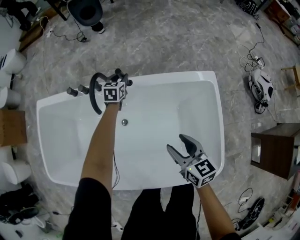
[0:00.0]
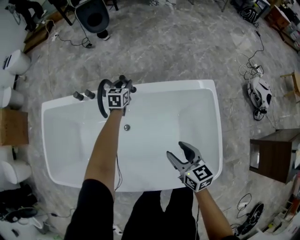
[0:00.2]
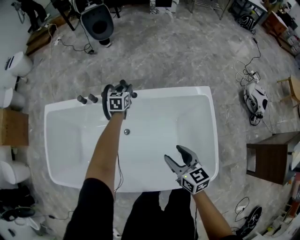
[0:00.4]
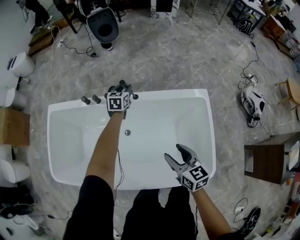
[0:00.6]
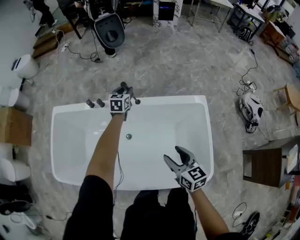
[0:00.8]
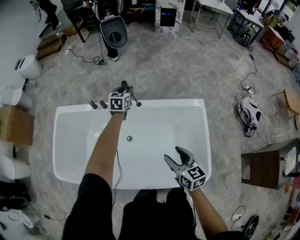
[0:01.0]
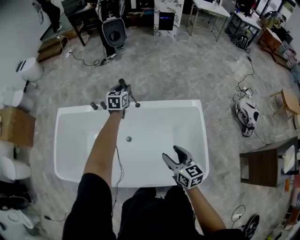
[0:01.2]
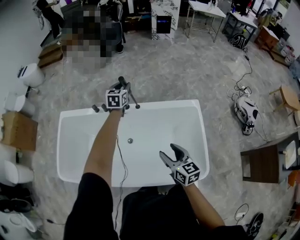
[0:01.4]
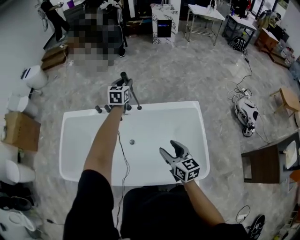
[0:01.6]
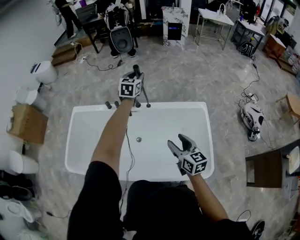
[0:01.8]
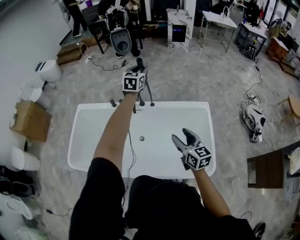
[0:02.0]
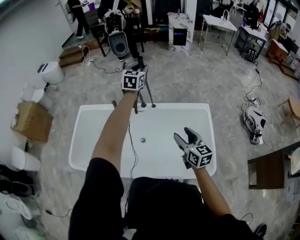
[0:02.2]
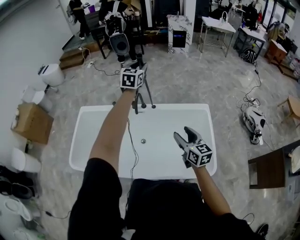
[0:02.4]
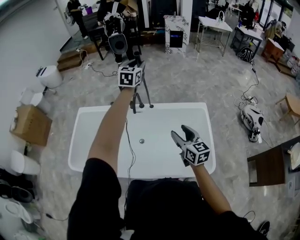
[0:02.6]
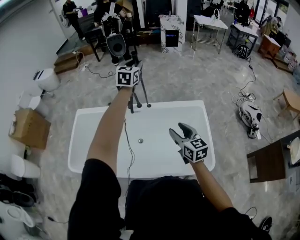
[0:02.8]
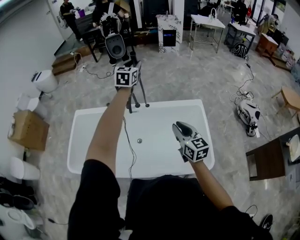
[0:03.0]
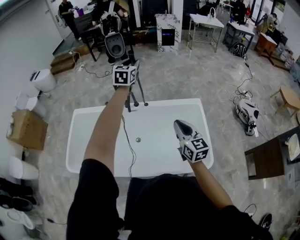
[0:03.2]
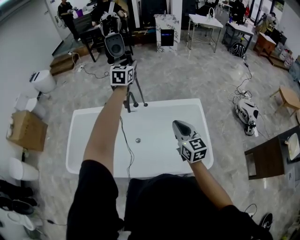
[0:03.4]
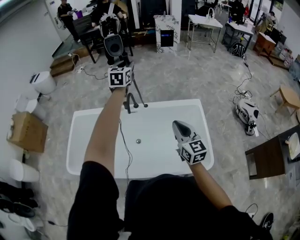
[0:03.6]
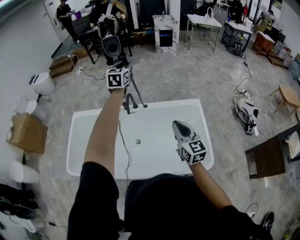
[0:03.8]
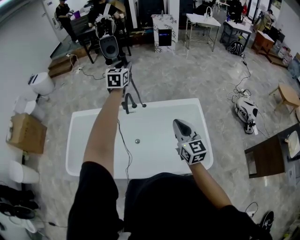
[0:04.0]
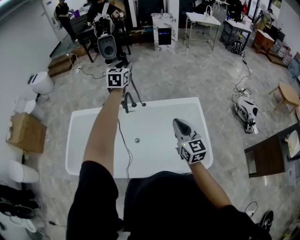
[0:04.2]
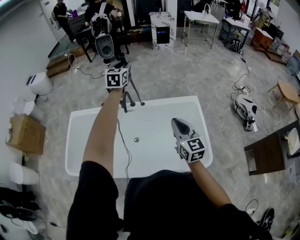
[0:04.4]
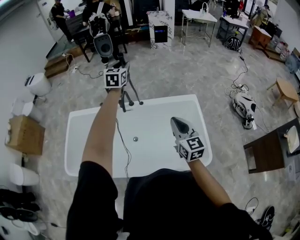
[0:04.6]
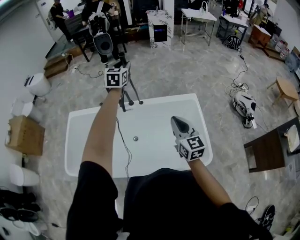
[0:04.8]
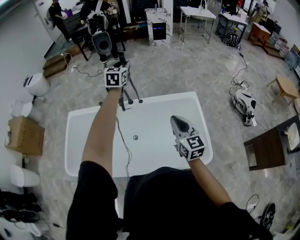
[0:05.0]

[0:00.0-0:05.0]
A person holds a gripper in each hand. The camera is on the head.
0:00.0 to 0:01.6: The right gripper travels upward and backward by approximately 20 cm; the left gripper goes about 40 cm upward.
0:01.6 to 0:03.4: The right gripper is displaced upward by roughly 10 cm, and closes. The left gripper moves upward and backward, about 20 cm.
0:03.4 to 0:05.0: The grippers stay close to where they were, moving slightly.

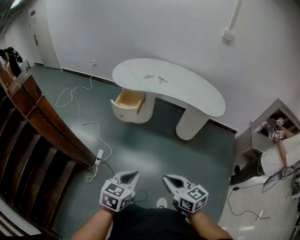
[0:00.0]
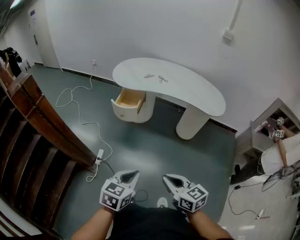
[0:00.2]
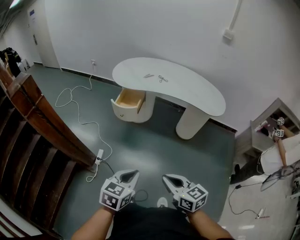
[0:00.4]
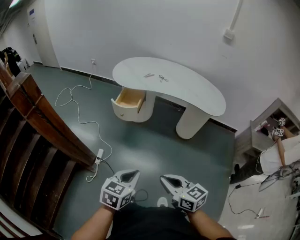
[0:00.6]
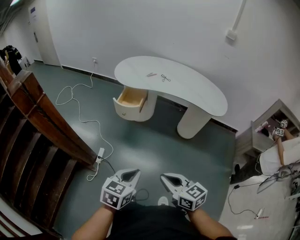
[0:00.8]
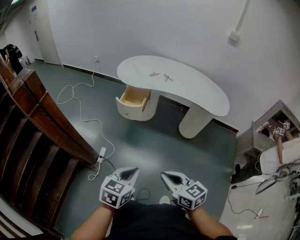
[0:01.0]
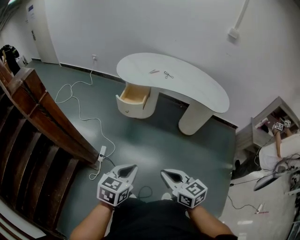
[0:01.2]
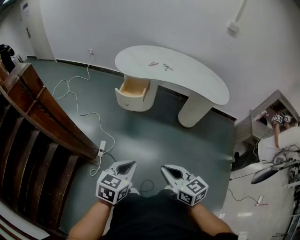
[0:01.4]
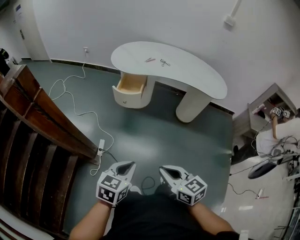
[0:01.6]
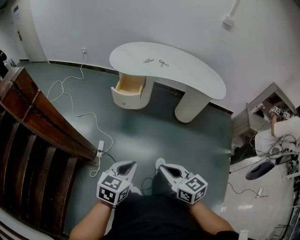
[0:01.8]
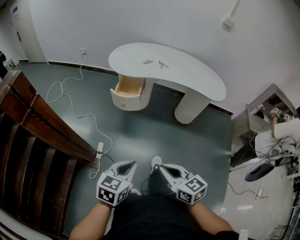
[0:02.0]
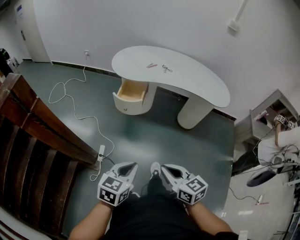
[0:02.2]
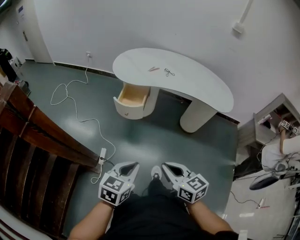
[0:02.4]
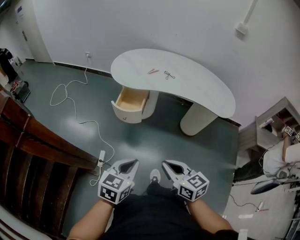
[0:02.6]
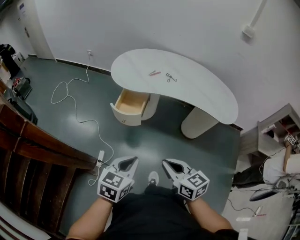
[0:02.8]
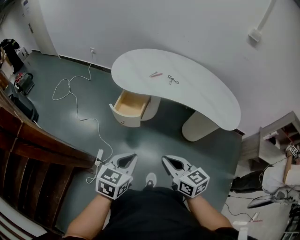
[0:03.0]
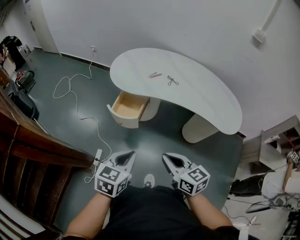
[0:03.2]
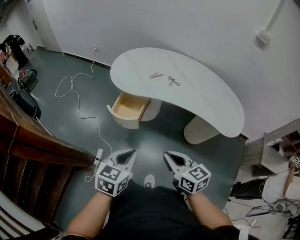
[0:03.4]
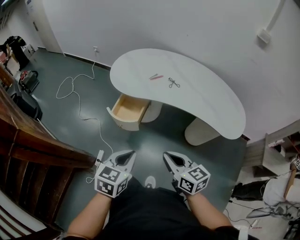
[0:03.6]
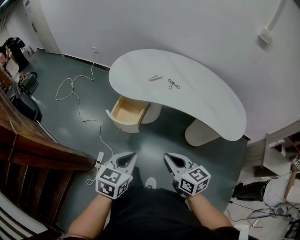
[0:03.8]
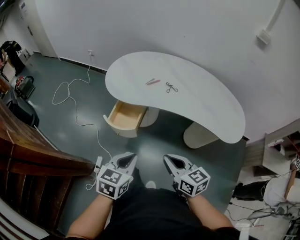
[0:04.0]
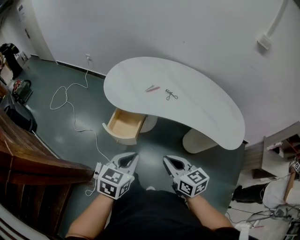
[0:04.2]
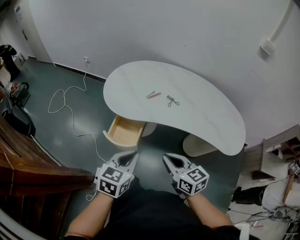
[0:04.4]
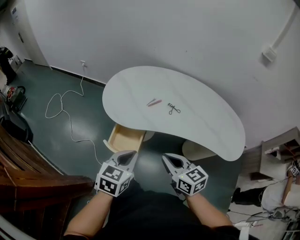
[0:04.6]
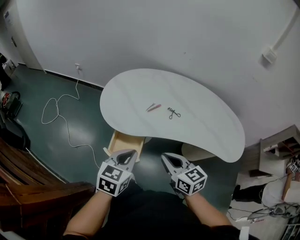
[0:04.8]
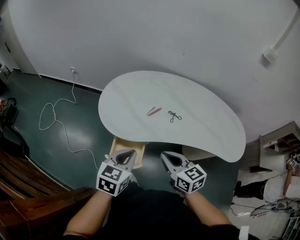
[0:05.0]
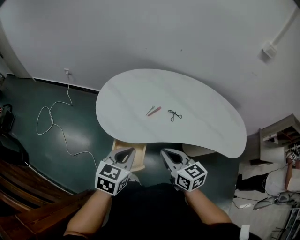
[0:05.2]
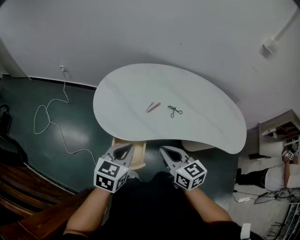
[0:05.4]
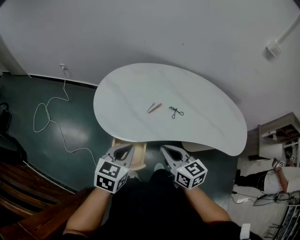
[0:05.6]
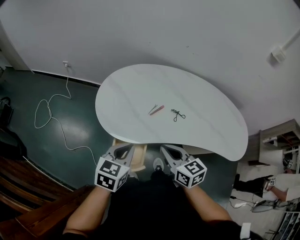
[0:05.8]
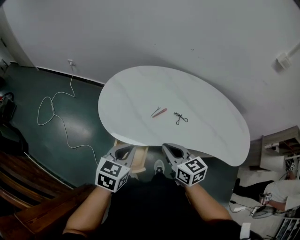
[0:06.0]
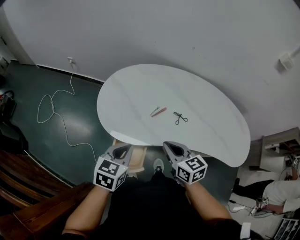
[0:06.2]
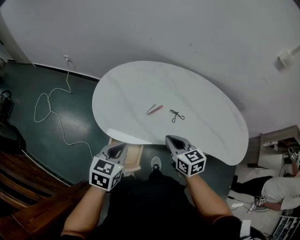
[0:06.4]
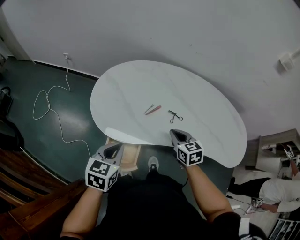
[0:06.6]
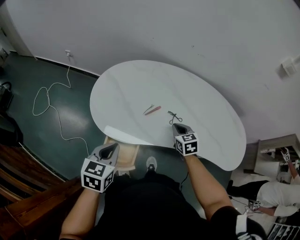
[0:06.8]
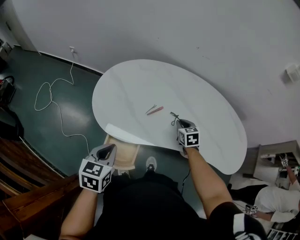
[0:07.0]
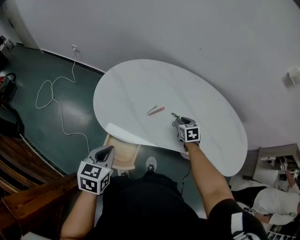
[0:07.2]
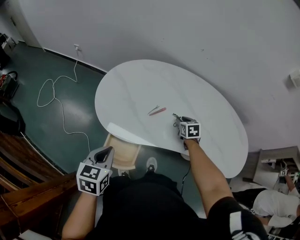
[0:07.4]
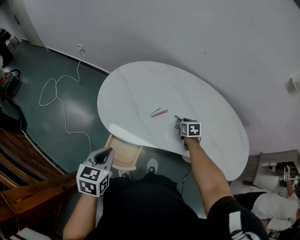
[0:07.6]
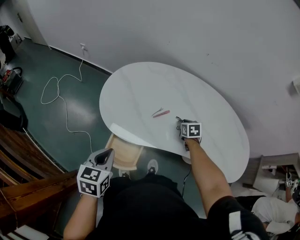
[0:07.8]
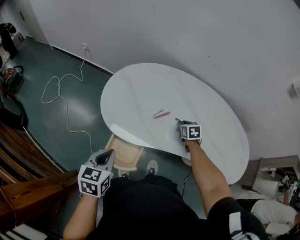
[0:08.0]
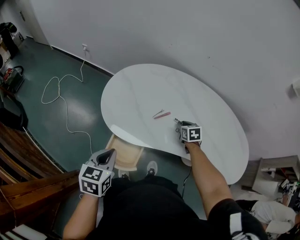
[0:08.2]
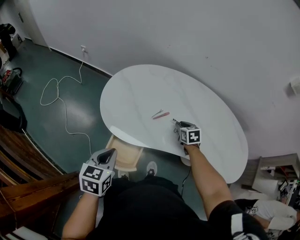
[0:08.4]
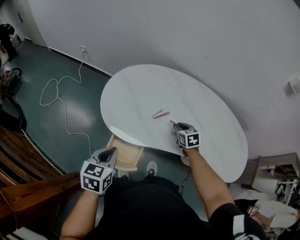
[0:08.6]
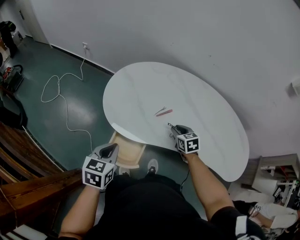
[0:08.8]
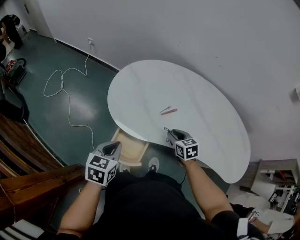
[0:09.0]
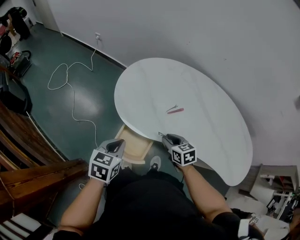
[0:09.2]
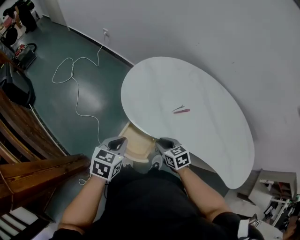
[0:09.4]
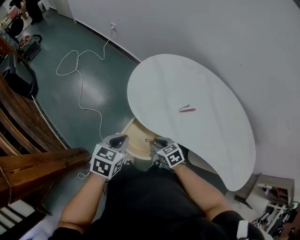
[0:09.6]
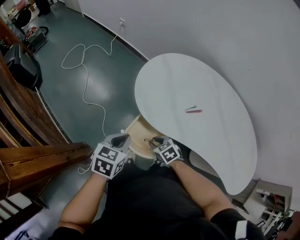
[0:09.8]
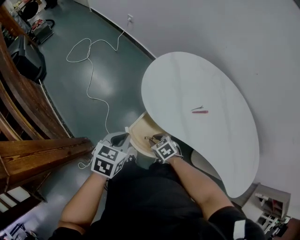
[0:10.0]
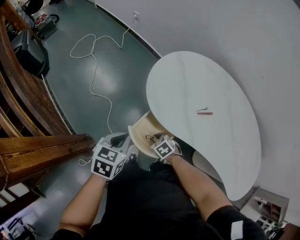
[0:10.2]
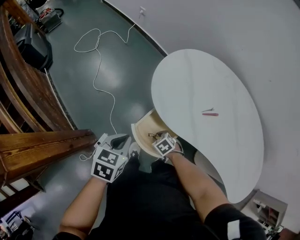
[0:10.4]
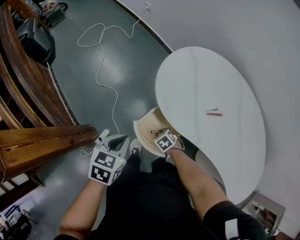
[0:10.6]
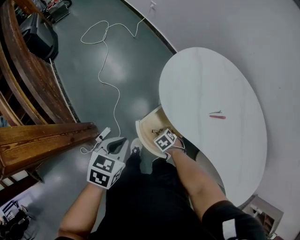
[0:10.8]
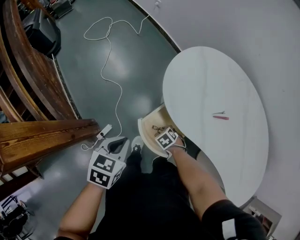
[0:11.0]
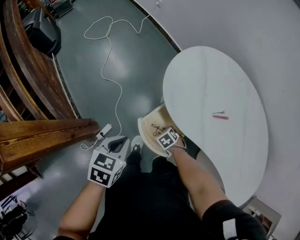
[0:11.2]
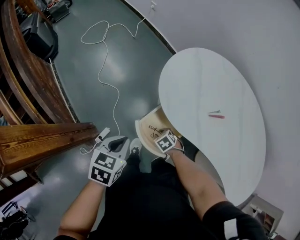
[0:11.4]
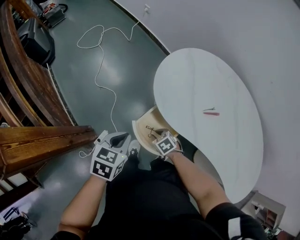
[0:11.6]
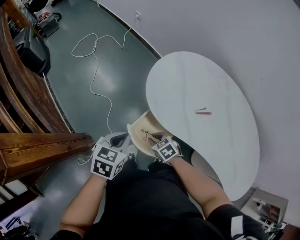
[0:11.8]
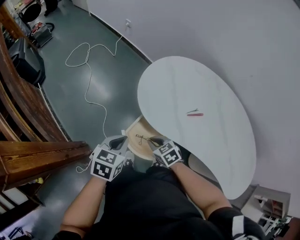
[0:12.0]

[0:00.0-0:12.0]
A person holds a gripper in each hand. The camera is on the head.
0:00.0 to 0:01.6: Both grippers move to the left, roughly 10 cm.
0:01.6 to 0:03.0: The two grippers go roughly 25 cm forward.
0:03.0 to 0:04.4: Both grippers move forward, about 20 cm.
0:04.4 to 0:06.0: The right gripper shifts roughly 20 cm forward, while the left gripper goes approximately 25 cm forward and to the left.
0:06.0 to 0:07.6: The right gripper travels forward, downward and to the right by roughly 30 cm, changes its angle by approximately 30 degrees, and opens its fingers. Meanwhile the left gripper moves approximately 5 cm.
0:07.6 to 0:09.0: The right gripper is displaced to the left and backward by some 15 cm.
0:09.0 to 0:10.4: The right gripper changes place by roughly 30 cm, and changes its angle by some 50 degrees. Meanwhile the left gripper changes place by about 10 cm.
0:10.4 to 0:12.0: The right gripper moves upward, about 15 cm, and swivels roughly 20 degrees.

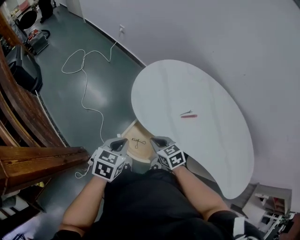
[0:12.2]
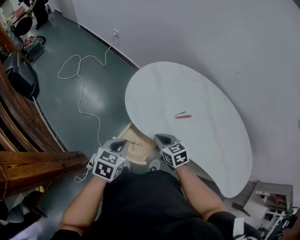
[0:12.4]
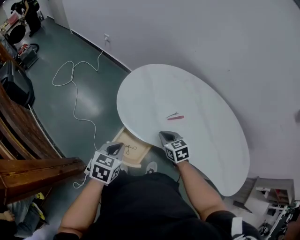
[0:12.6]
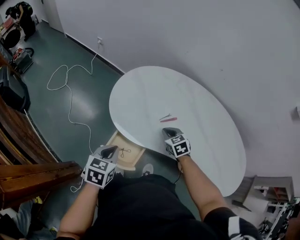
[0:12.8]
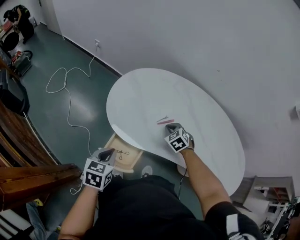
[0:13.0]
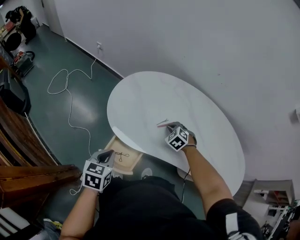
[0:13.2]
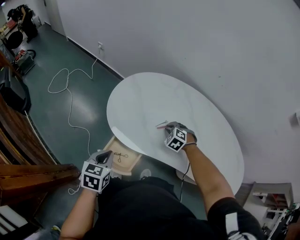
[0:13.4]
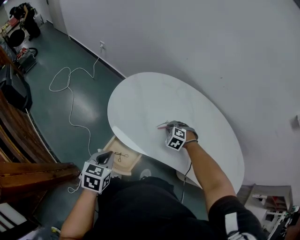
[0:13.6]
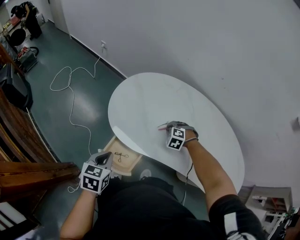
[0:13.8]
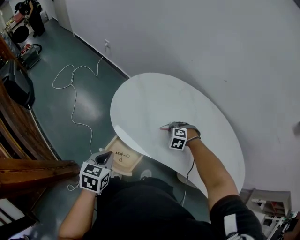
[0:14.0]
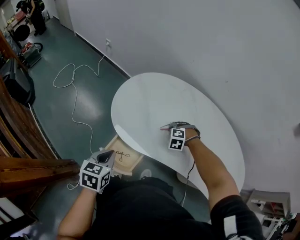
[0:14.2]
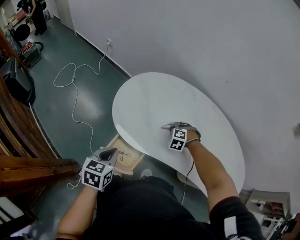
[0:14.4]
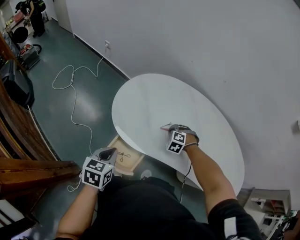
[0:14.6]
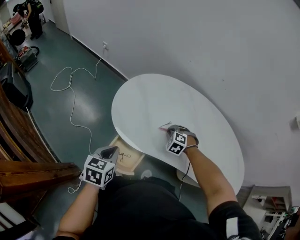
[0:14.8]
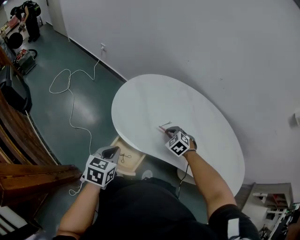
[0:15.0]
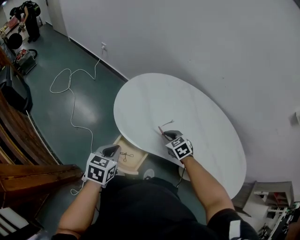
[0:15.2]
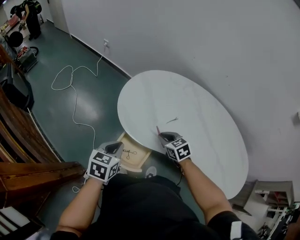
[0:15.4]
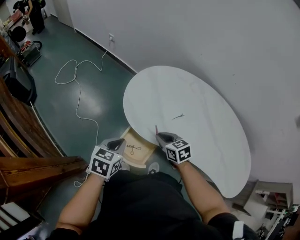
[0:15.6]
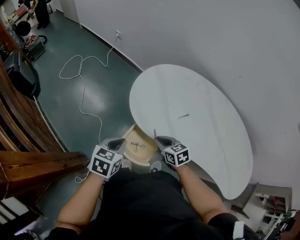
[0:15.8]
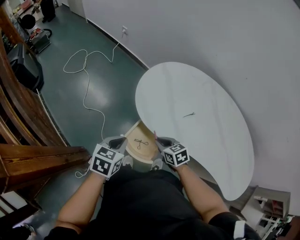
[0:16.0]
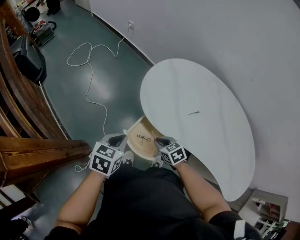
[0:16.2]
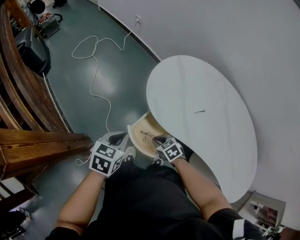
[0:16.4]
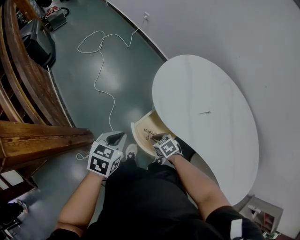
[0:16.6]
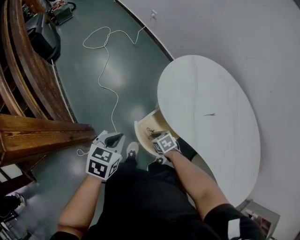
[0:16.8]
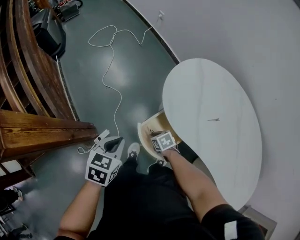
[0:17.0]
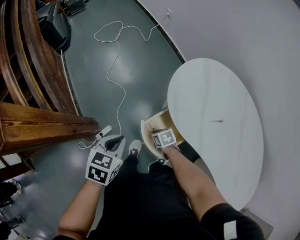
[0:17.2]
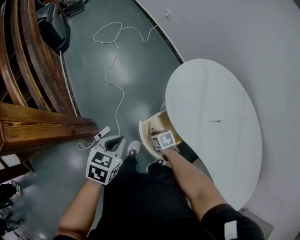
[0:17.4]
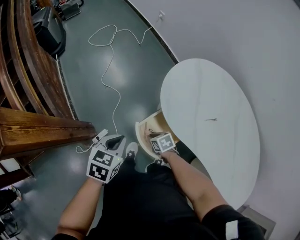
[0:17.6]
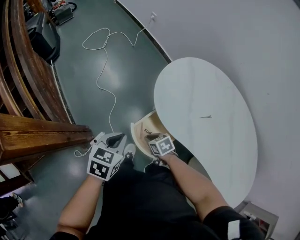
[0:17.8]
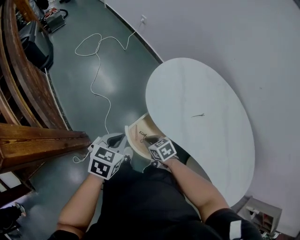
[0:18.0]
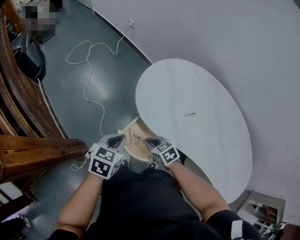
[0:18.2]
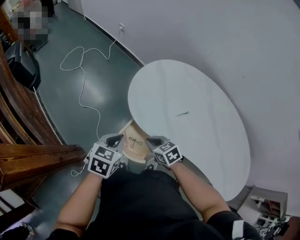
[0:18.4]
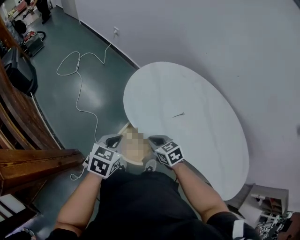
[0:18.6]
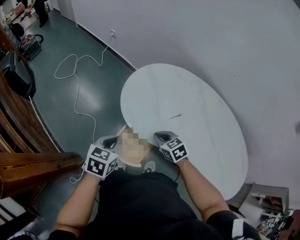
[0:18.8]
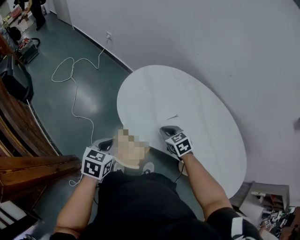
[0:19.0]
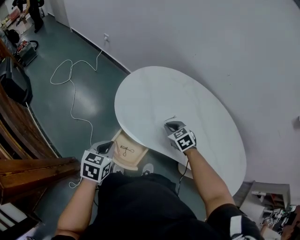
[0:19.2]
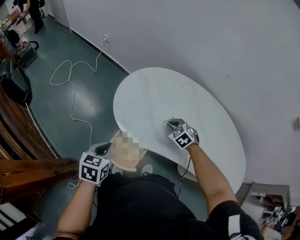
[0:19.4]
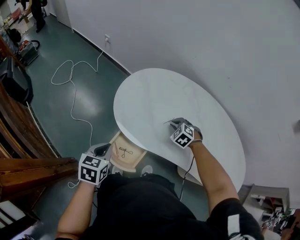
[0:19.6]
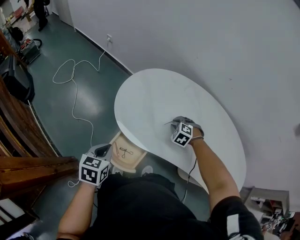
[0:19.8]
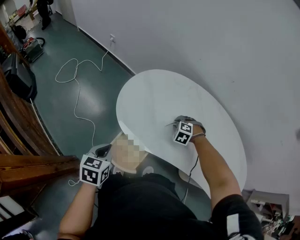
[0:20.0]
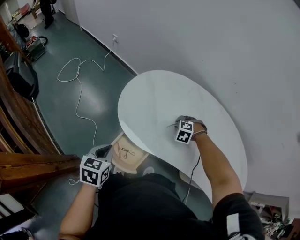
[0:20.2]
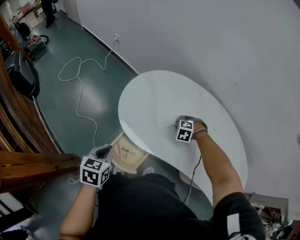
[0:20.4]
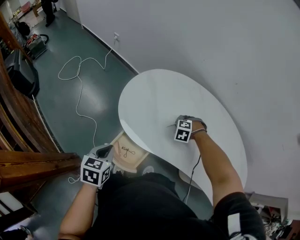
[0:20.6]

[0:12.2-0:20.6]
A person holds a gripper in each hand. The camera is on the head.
0:12.2 to 0:13.6: The right gripper heads to the right and forward, covering some 25 cm, and rolls counterclockwise, seen from behind, by approximately 40 degrees. The left gripper ends up approximately 5 cm from where it was.
0:13.6 to 0:15.0: The right gripper ends up roughly 5 cm from where it was.
0:15.0 to 0:16.4: The left gripper changes place by some 10 cm. Meanwhile the right gripper ends up about 25 cm from where it was, and turns by about 30 degrees.
0:16.4 to 0:17.8: The right gripper moves to the left, about 5 cm.
0:17.8 to 0:19.2: The right gripper moves some 30 cm, and rotates some 30 degrees. The left gripper moves about 10 cm.
0:19.2 to 0:20.6: The right gripper moves roughly 10 cm, and rolls counterclockwise, seen from behind, by roughly 50 degrees.
